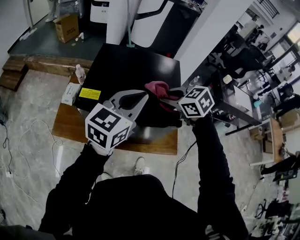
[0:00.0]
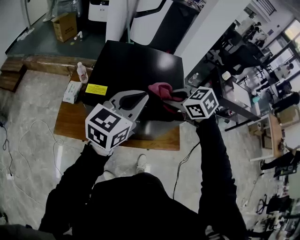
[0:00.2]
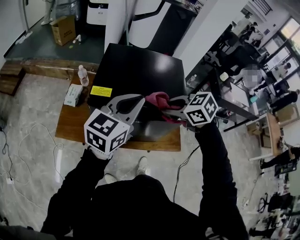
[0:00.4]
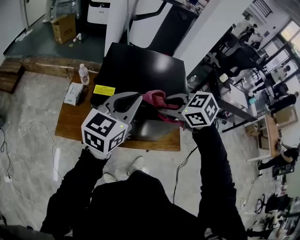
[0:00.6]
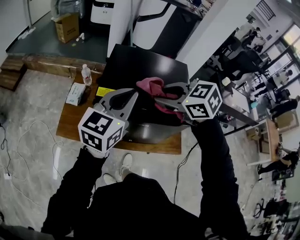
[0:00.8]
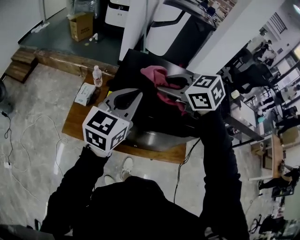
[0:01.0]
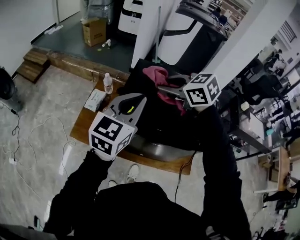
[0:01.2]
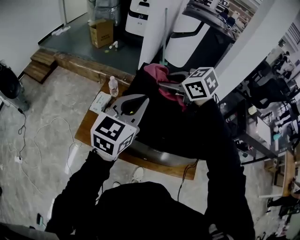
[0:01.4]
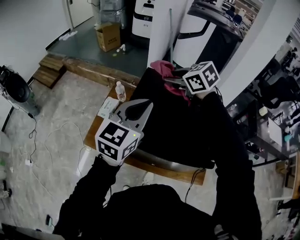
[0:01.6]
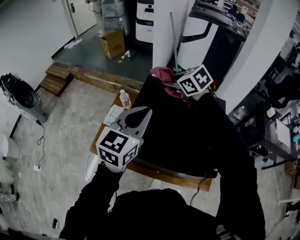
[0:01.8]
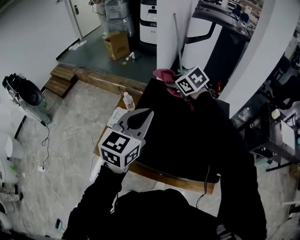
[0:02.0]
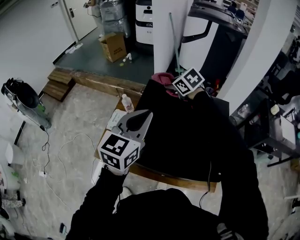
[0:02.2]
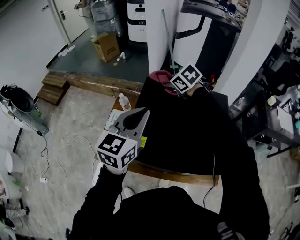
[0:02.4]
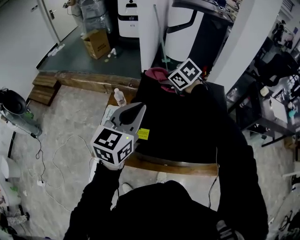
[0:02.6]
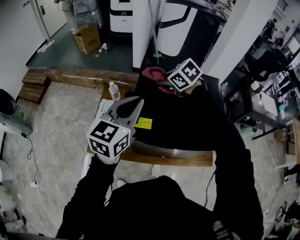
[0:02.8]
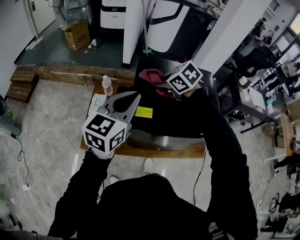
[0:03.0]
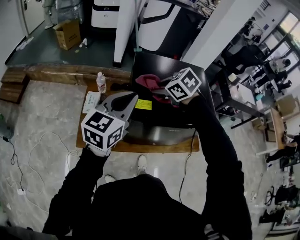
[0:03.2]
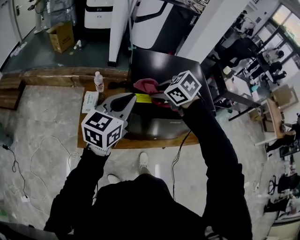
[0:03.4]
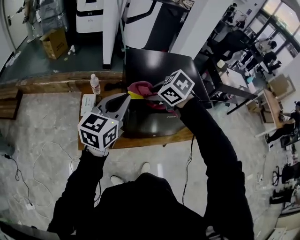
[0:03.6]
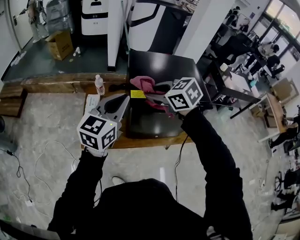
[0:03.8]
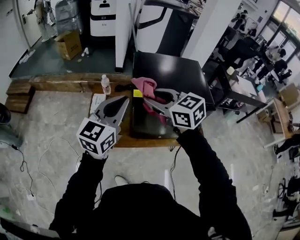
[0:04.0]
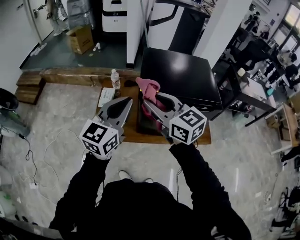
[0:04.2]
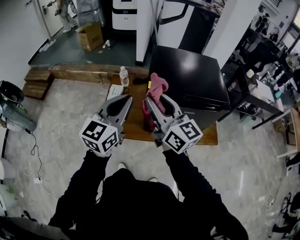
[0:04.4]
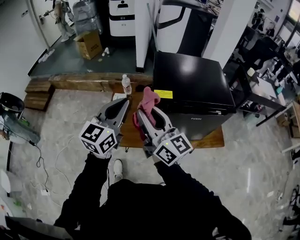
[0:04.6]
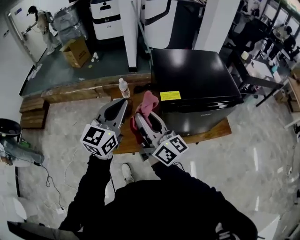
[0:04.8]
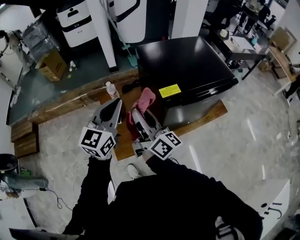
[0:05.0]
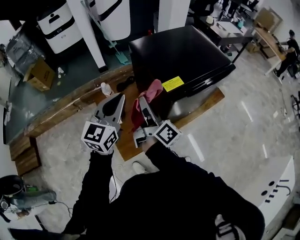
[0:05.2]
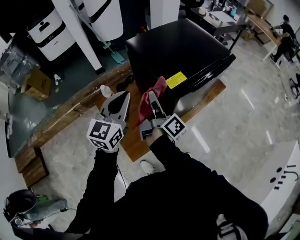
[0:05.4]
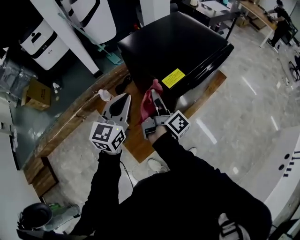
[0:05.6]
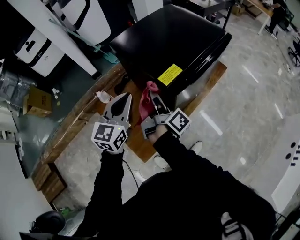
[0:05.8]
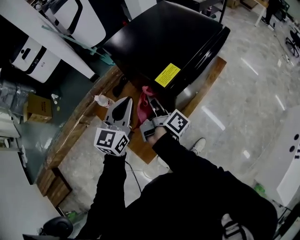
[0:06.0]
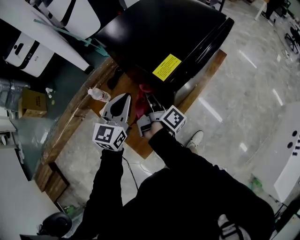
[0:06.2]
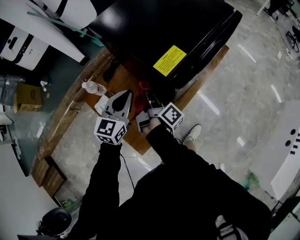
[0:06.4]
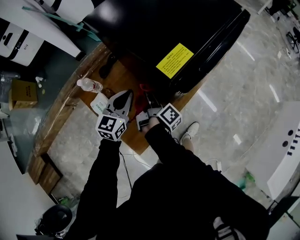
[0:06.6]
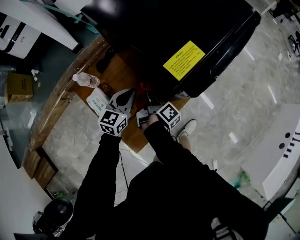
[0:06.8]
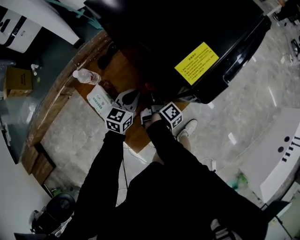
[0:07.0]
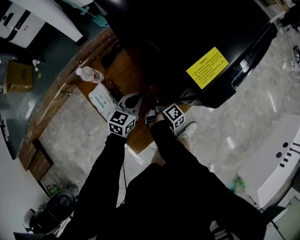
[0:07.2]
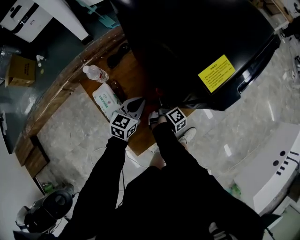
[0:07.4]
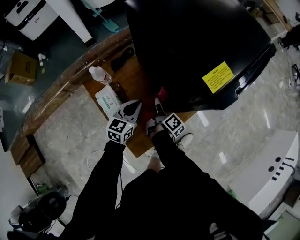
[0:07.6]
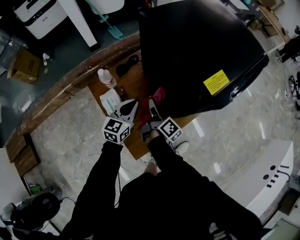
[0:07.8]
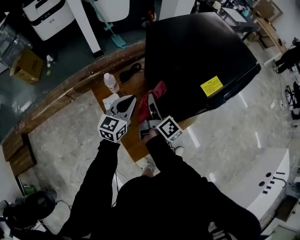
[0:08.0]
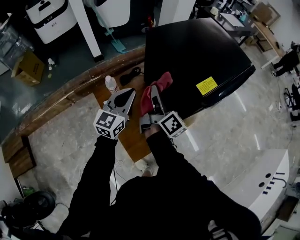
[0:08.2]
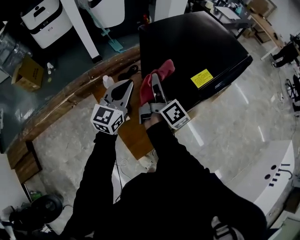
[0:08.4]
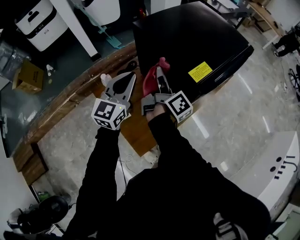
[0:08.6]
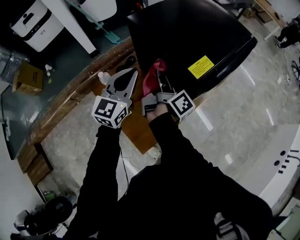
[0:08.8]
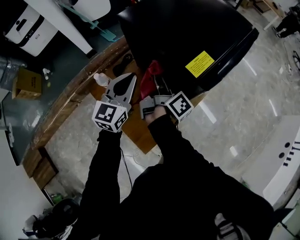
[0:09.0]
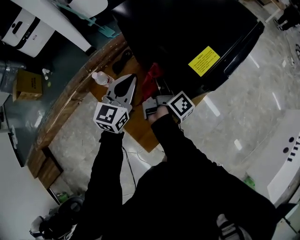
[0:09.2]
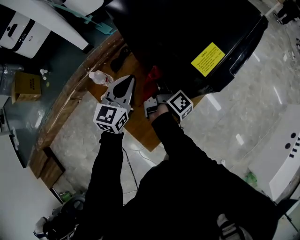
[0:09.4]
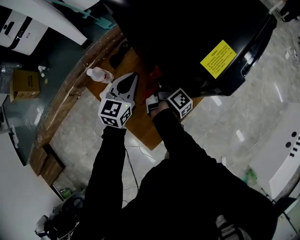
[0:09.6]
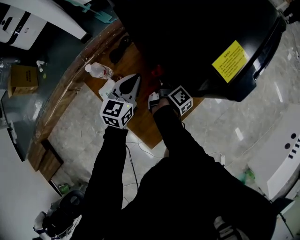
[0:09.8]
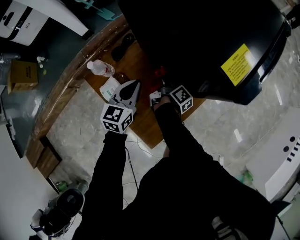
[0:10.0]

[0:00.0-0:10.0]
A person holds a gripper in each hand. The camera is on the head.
0:00.0 to 0:01.4: The right gripper is displaced to the left, forward and upward by approximately 25 cm; the left gripper moves to the left and forward, approximately 15 cm.
0:01.4 to 0:02.8: The right gripper shifts roughly 15 cm downward and forward. Meanwhile the left gripper changes place by approximately 5 cm.
0:02.8 to 0:04.2: The left gripper is displaced backward and to the left by about 20 cm; the right gripper moves backward and to the left, some 35 cm, and angles its fingers upward, by roughly 40 degrees.
0:04.2 to 0:05.8: The left gripper changes place by approximately 25 cm, and changes its angle by about 40 degrees. The right gripper travels downward by about 20 cm, and swivels roughly 110 degrees.
0:05.8 to 0:07.2: Both grippers move downward, roughly 35 cm. The right gripper changes its angle by roughly 30 degrees. Meanwhile the left gripper changes its angle by roughly 20 degrees.
0:07.2 to 0:08.6: The grippers both shift upward by about 30 cm. The right gripper rotates some 30 degrees. The left gripper rotates approximately 30 degrees.
0:08.6 to 0:10.0: The two grippers go about 30 cm downward. The right gripper swivels about 30 degrees. The left gripper swivels about 20 degrees.

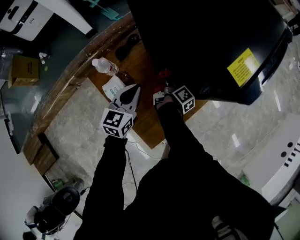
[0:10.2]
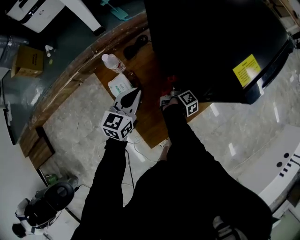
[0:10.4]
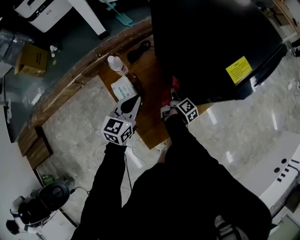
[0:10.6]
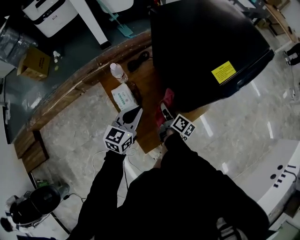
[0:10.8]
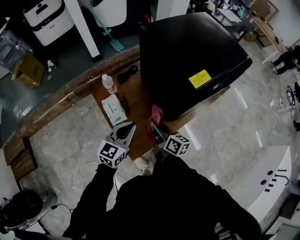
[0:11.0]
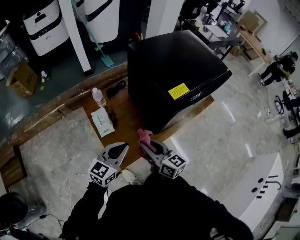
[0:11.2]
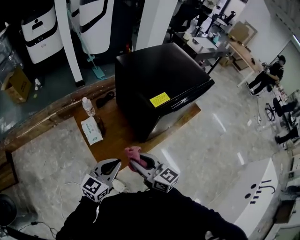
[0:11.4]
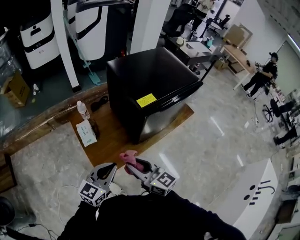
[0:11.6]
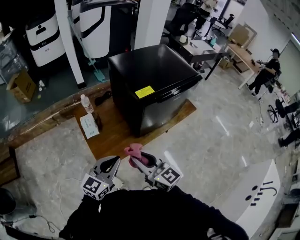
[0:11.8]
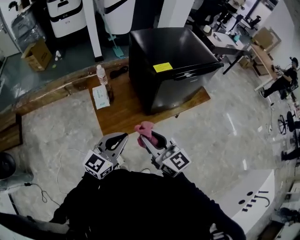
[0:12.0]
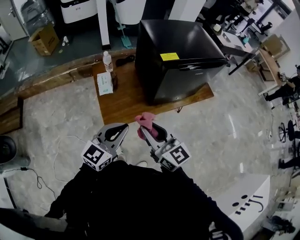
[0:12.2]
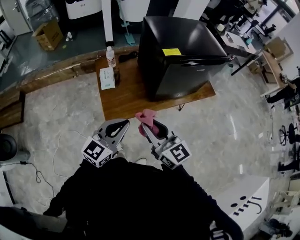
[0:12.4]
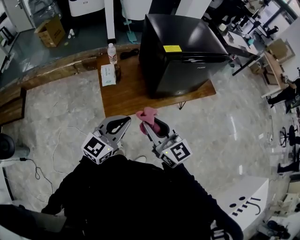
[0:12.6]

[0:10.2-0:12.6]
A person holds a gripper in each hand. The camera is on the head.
0:10.2 to 0:11.4: The right gripper shifts some 50 cm upward and backward, and turns by roughly 90 degrees. Meanwhile the left gripper is displaced backward, upward and to the right by about 35 cm.
0:11.4 to 0:12.6: The grippers both shift backward, to the right and upward by roughly 15 cm.

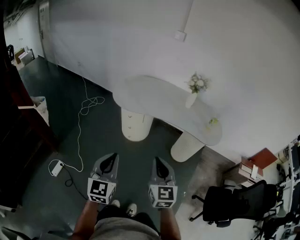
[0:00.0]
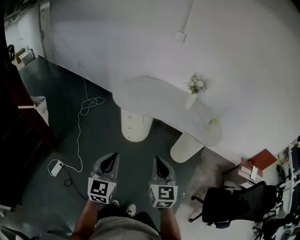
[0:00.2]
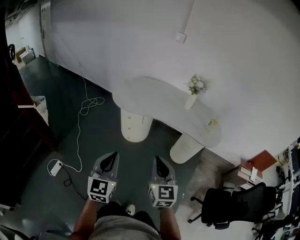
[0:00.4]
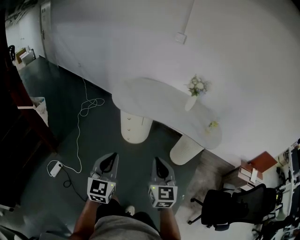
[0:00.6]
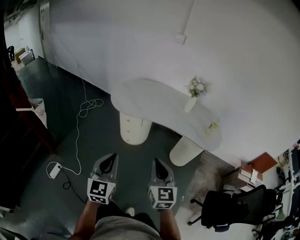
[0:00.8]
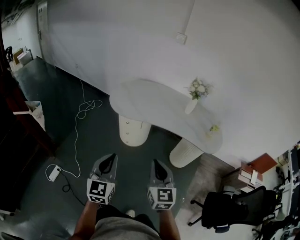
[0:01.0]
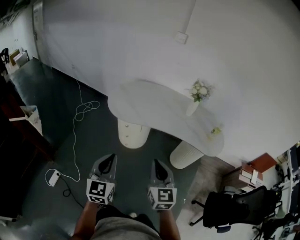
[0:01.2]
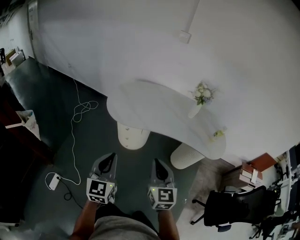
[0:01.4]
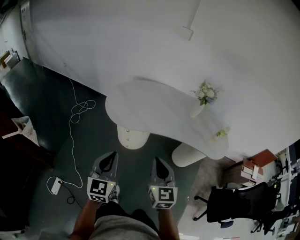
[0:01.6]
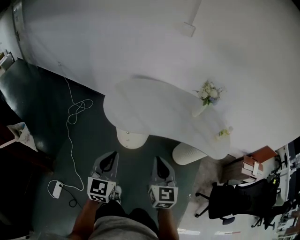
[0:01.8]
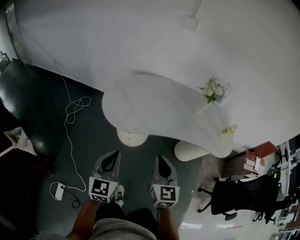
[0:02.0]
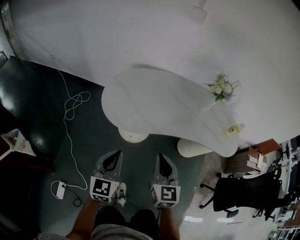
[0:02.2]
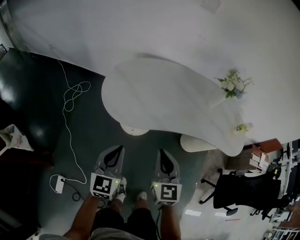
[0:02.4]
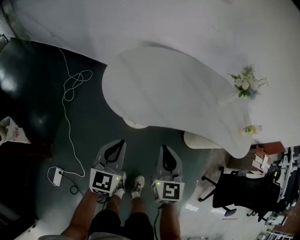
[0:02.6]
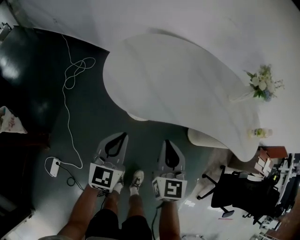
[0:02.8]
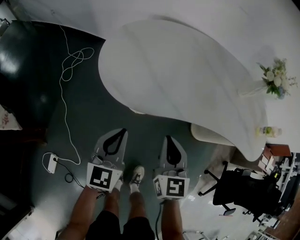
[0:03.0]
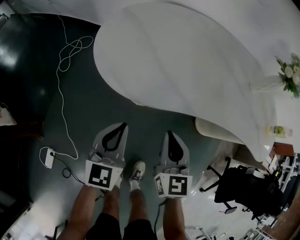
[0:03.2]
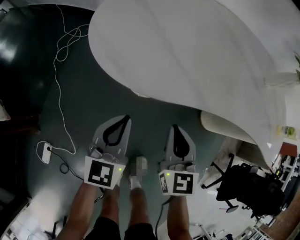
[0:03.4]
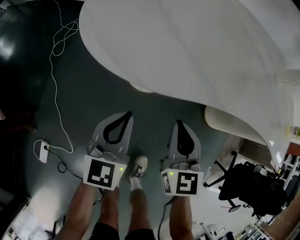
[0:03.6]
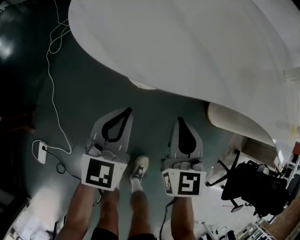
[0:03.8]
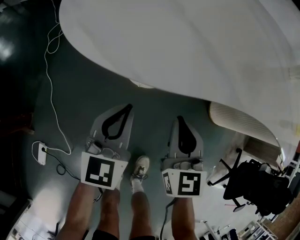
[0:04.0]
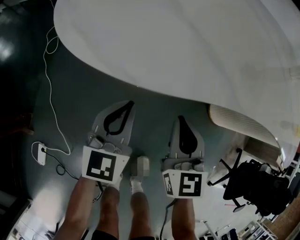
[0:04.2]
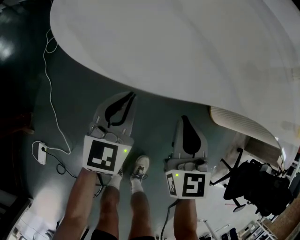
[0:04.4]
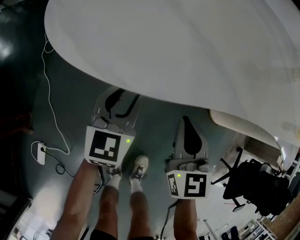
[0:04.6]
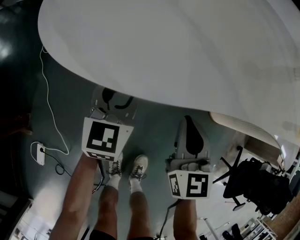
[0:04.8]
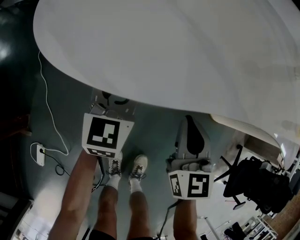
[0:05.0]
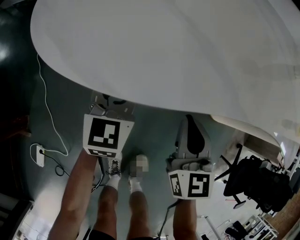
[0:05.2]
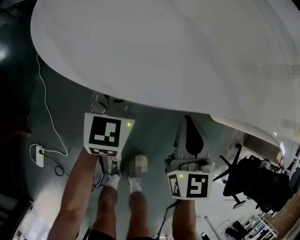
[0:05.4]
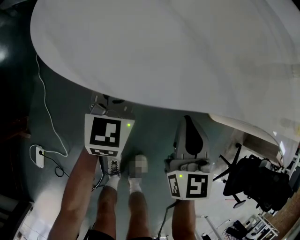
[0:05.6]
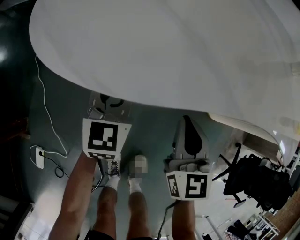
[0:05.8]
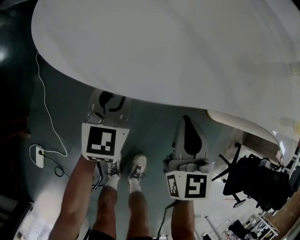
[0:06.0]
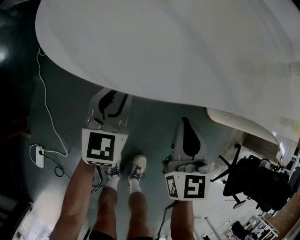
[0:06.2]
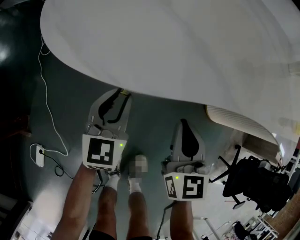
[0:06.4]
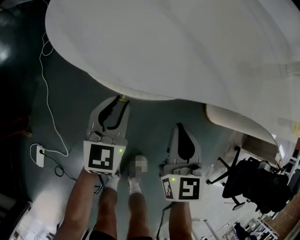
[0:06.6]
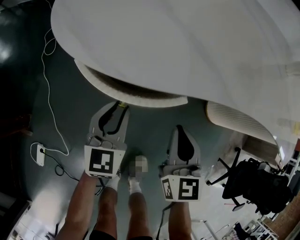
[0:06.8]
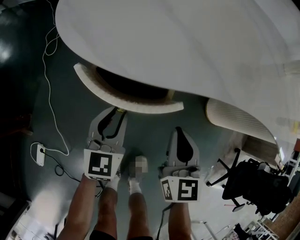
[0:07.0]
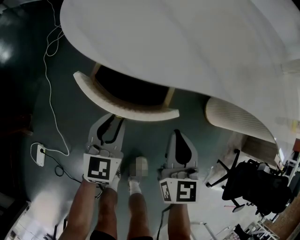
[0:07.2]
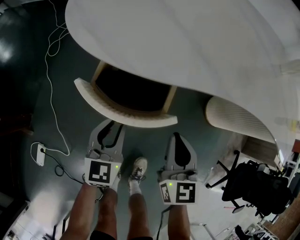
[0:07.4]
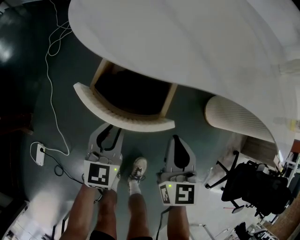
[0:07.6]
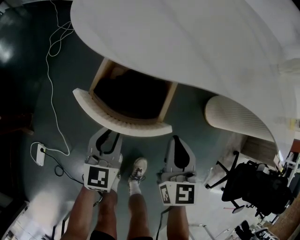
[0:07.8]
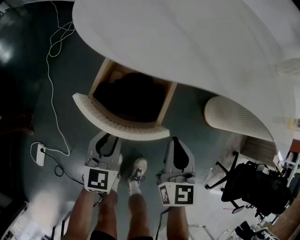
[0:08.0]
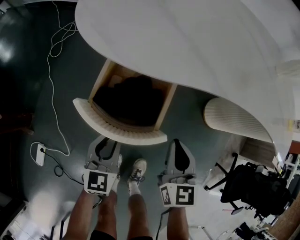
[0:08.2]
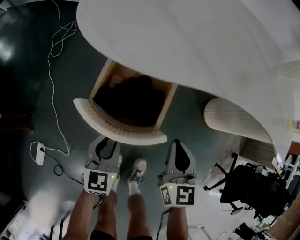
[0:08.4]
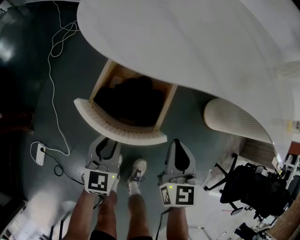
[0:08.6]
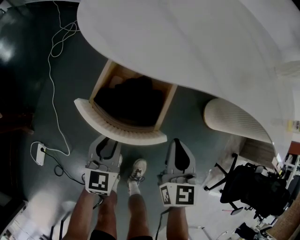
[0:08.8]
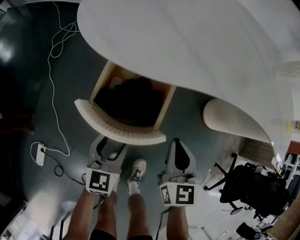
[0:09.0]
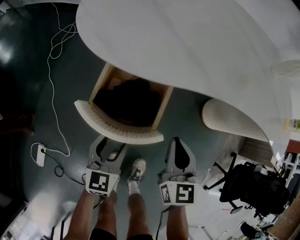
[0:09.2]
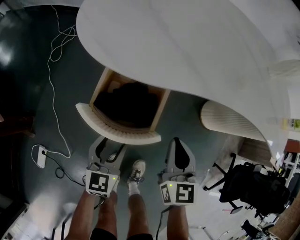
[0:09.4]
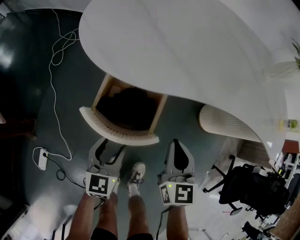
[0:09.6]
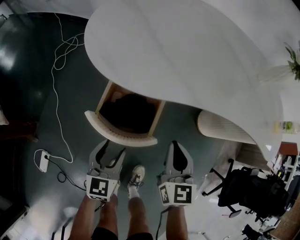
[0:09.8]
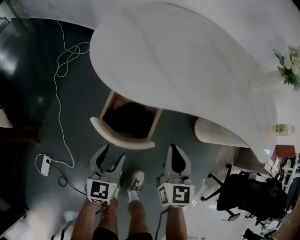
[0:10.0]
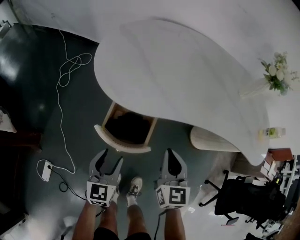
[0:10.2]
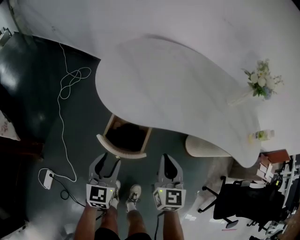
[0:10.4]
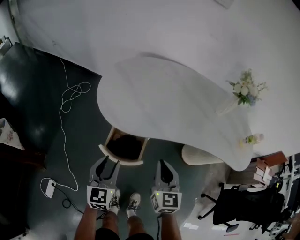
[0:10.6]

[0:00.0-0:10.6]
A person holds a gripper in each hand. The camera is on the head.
0:00.0 to 0:01.6: The two grippers go roughly 25 cm forward.
0:01.6 to 0:03.0: The two grippers go about 30 cm downward and forward.
0:03.0 to 0:04.6: The grippers both shift downward by roughly 25 cm. The left gripper opens up.
0:04.6 to 0:06.0: The grippers make only small movements.
0:06.0 to 0:07.6: The right gripper moves backward, about 10 cm, while the left gripper heads backward, covering about 15 cm.
0:07.6 to 0:09.0: The left gripper opens its fingers.
0:09.0 to 0:10.6: The grippers both shift upward by about 25 cm.
